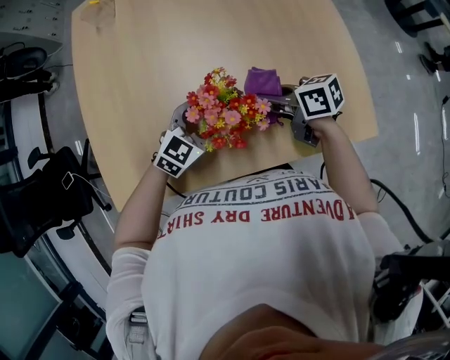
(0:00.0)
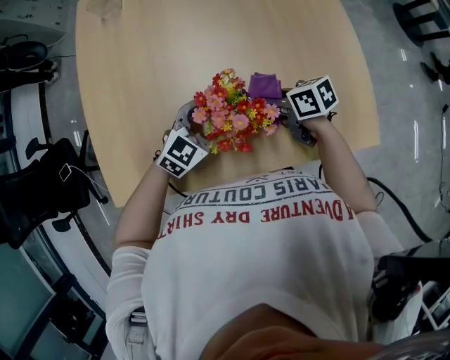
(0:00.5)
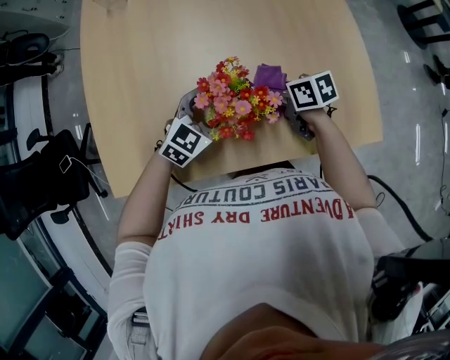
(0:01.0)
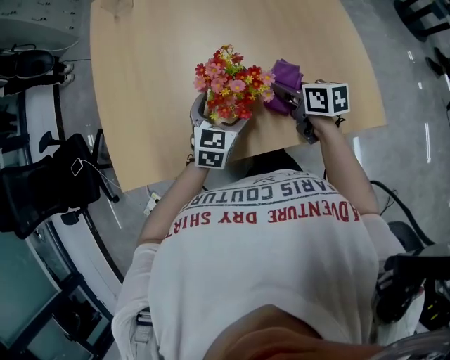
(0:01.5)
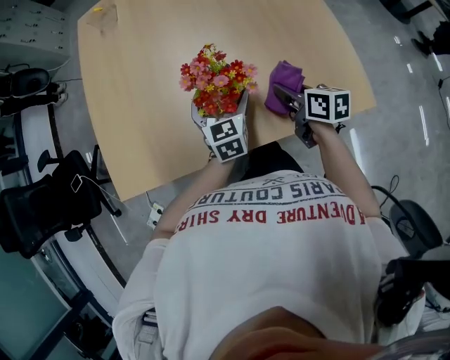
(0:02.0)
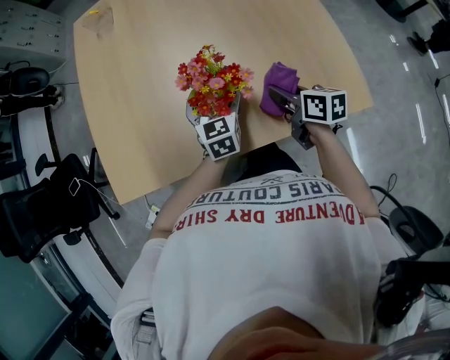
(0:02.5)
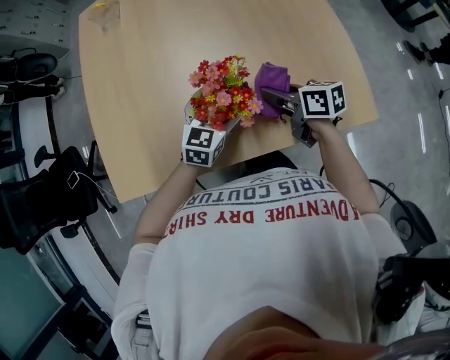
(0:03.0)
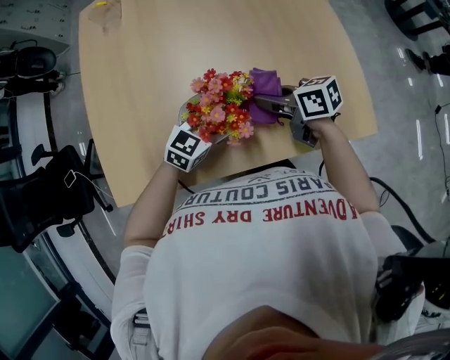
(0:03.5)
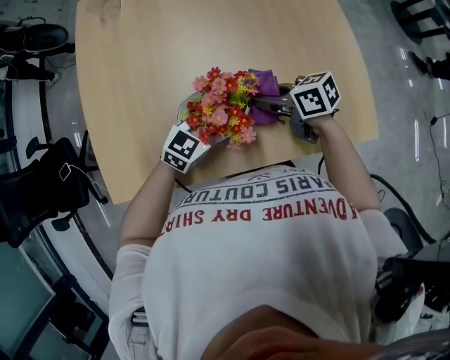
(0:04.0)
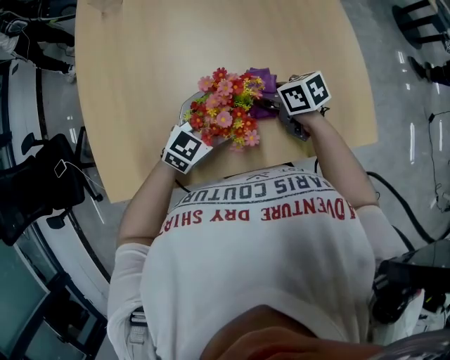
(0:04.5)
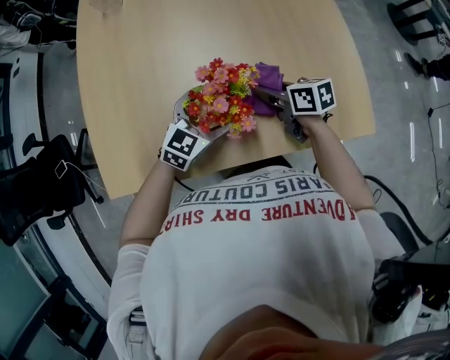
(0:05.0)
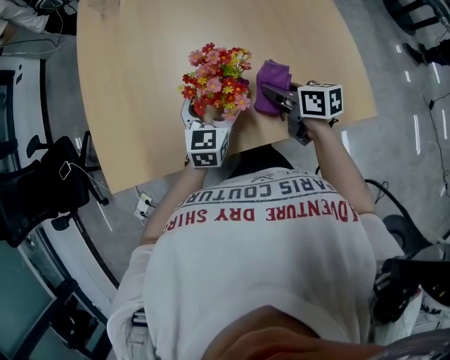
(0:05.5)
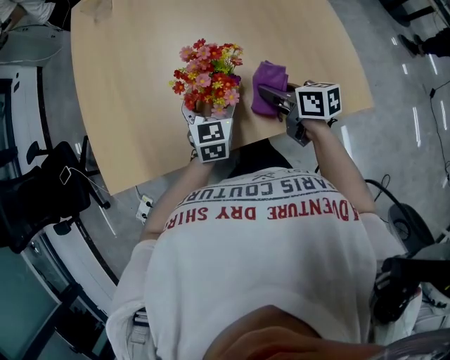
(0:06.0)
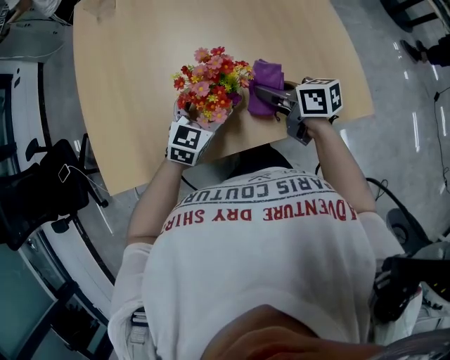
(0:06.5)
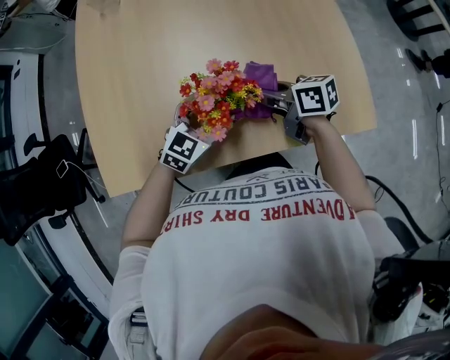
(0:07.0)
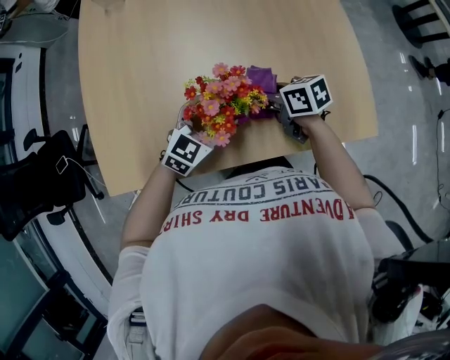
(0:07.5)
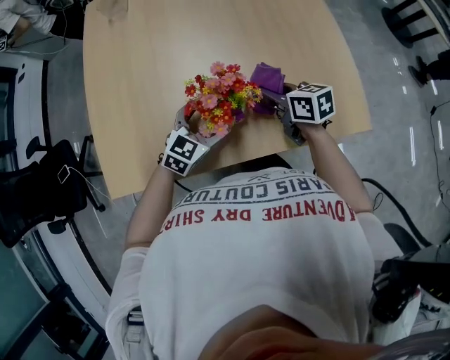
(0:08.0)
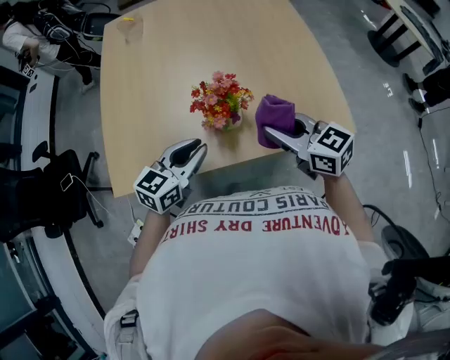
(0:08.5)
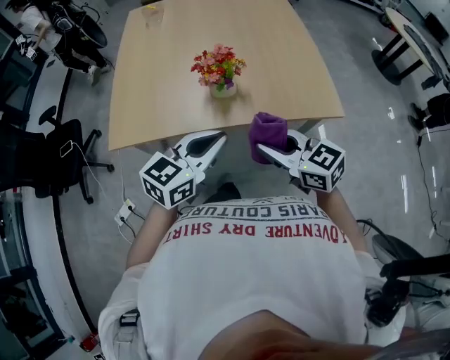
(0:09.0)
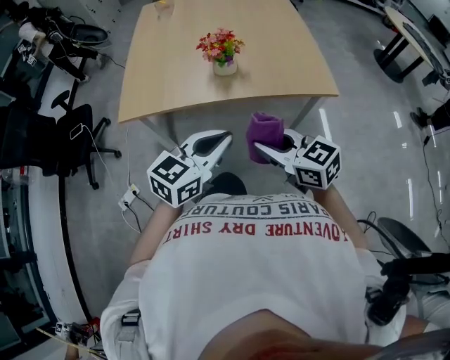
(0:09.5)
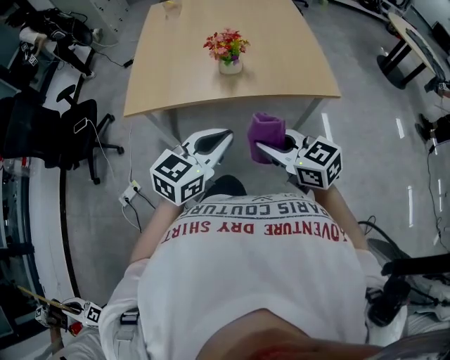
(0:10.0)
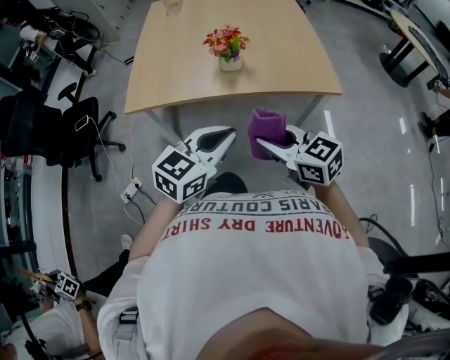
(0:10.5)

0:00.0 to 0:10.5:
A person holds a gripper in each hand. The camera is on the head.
0:00.0 to 0:02.0: The right gripper ends up some 10 cm from where it was, and rotates some 30 degrees. The left gripper turns by approximately 50 degrees.
0:02.0 to 0:04.0: The left gripper swivels some 50 degrees, while the right gripper changes place by some 10 cm, and changes its angle by about 30 degrees.
0:04.0 to 0:06.5: The right gripper moves about 5 cm.
0:06.5 to 0:08.5: The left gripper goes some 20 cm upward, backward and to the left, and closes up. Meanwhile the right gripper is displaced upward and backward by approximately 20 cm, and changes its angle by about 40 degrees.
0:08.5 to 0:10.5: Both grippers travel together backward, about 35 cm.

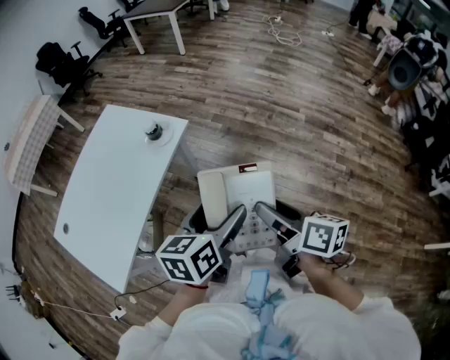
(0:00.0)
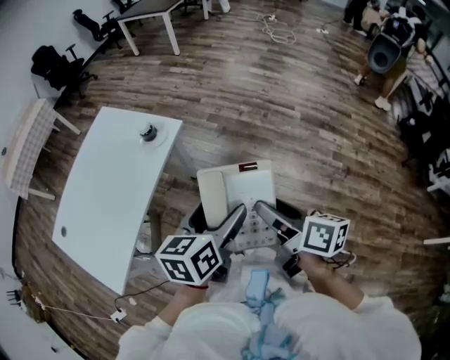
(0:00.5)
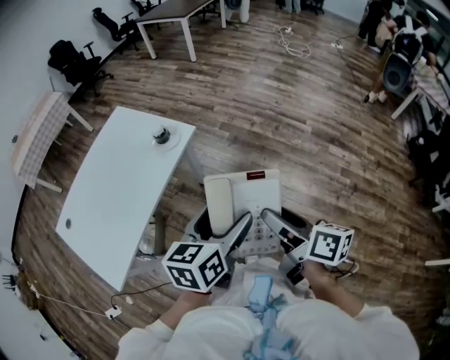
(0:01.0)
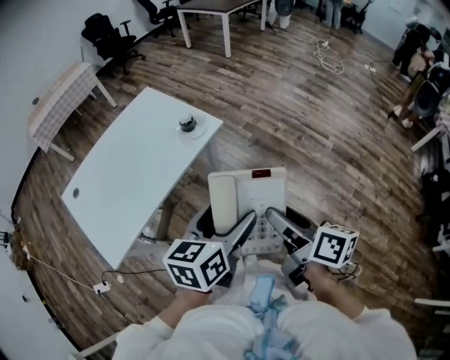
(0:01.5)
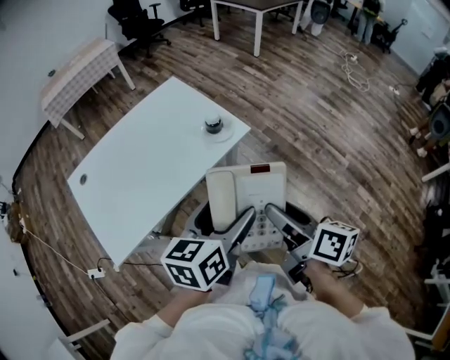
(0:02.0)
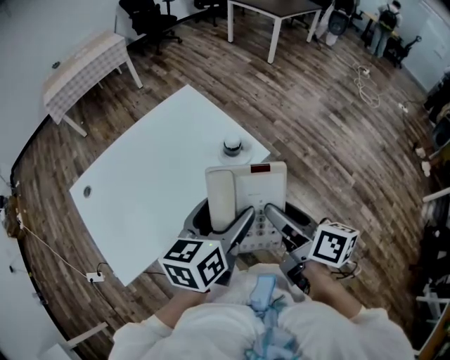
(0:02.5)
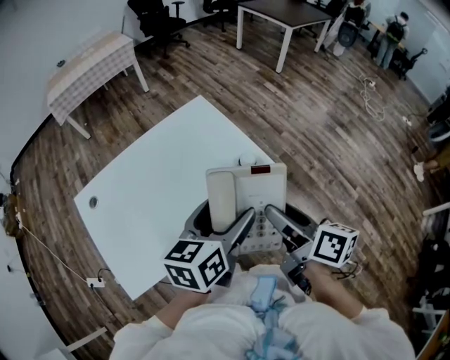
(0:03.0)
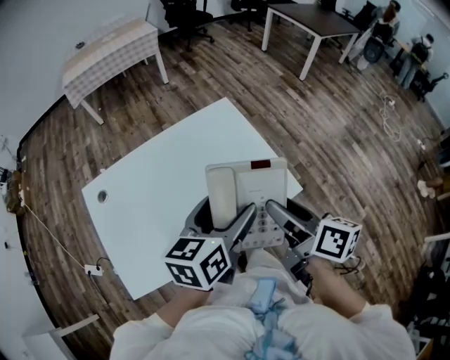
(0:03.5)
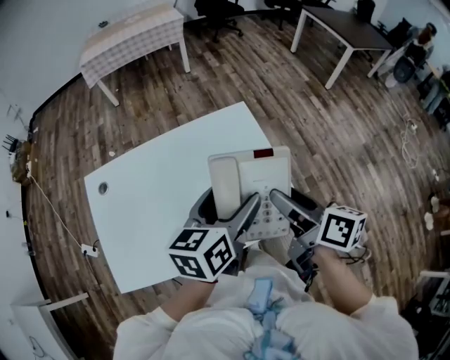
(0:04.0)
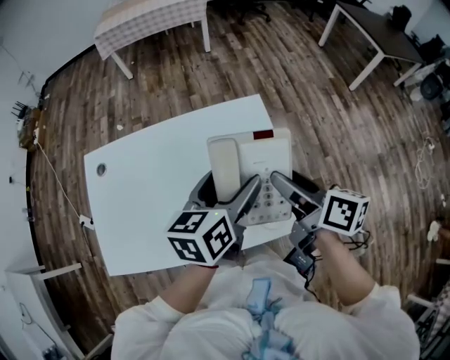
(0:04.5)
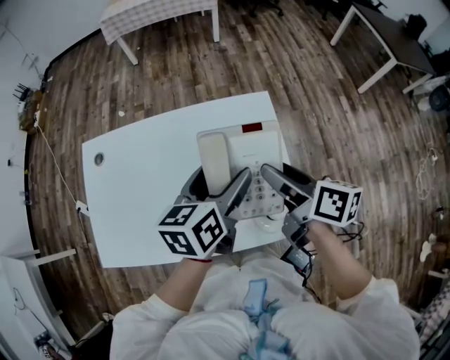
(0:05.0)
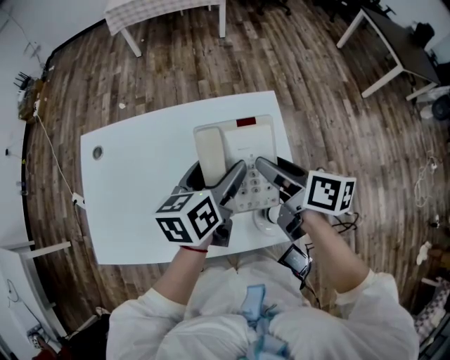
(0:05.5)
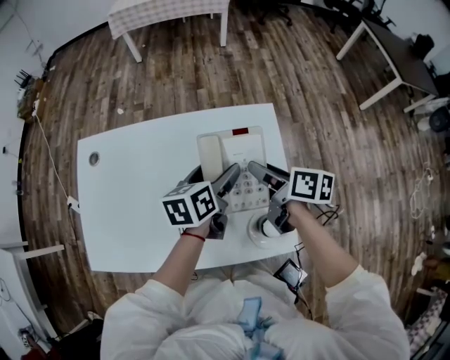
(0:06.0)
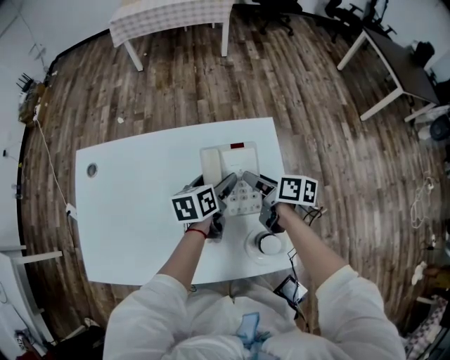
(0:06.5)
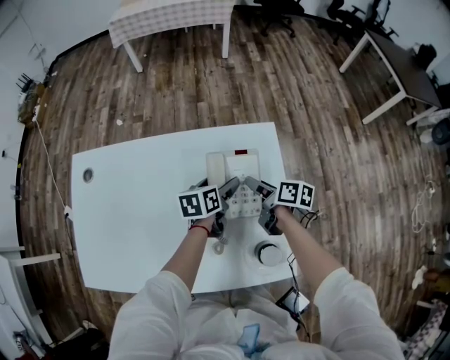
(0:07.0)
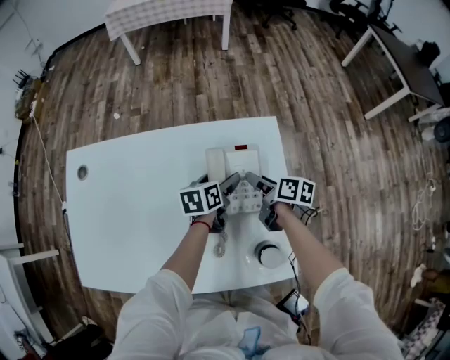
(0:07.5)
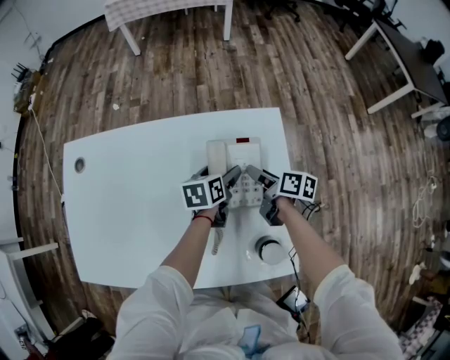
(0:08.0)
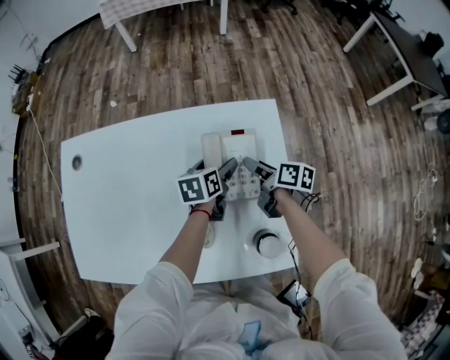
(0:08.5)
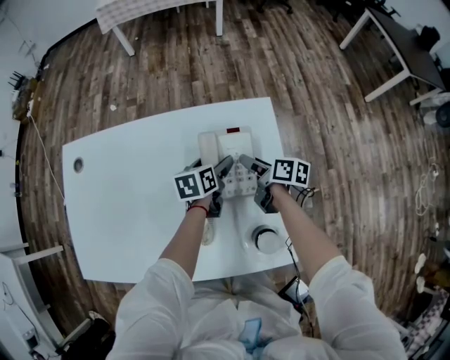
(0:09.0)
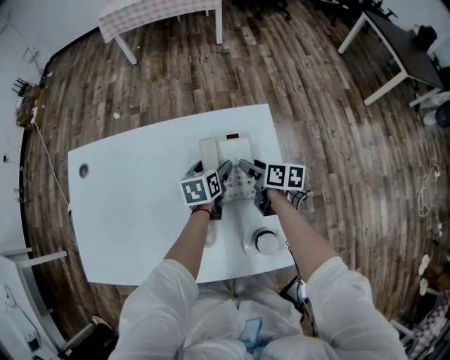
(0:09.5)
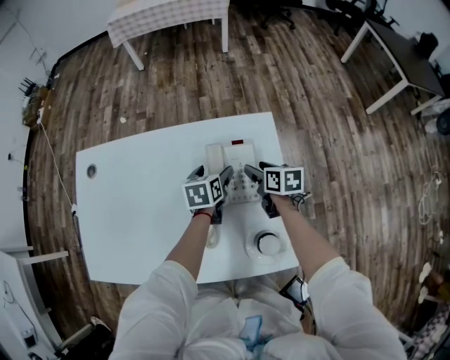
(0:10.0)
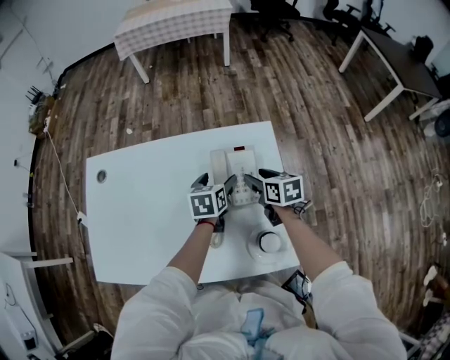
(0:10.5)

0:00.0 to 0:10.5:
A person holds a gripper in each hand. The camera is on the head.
0:00.0 to 0:02.0: The grippers both shift to the left and forward by approximately 15 cm. The left gripper rotates about 20 degrees. Meanwhile the right gripper swivels approximately 20 degrees.
0:02.0 to 0:04.0: The grippers both shift forward by some 40 cm. The right gripper rotates roughly 20 degrees, while the left gripper swivels roughly 20 degrees.
0:04.0 to 0:06.5: The two grippers go approximately 30 cm downward and forward. The left gripper rotates some 30 degrees. Meanwhile the right gripper swivels approximately 20 degrees.
0:06.5 to 0:08.5: The grippers both shift downward by some 10 cm.
0:08.5 to 0:10.5: The two grippers go about 5 cm upward. The right gripper rotates about 30 degrees.

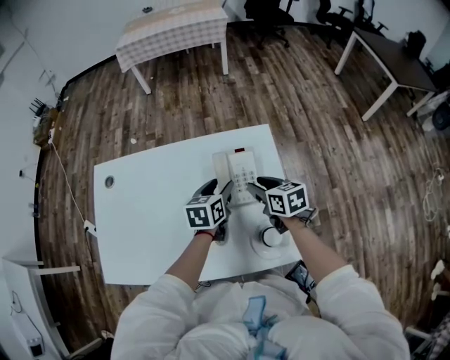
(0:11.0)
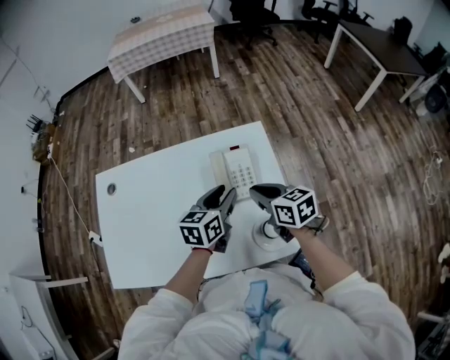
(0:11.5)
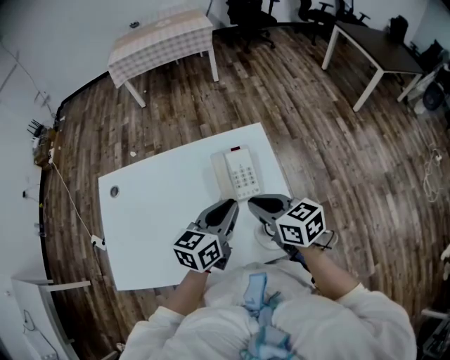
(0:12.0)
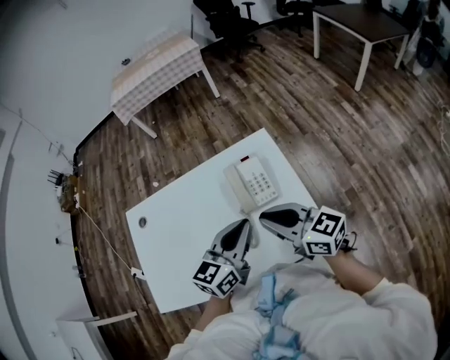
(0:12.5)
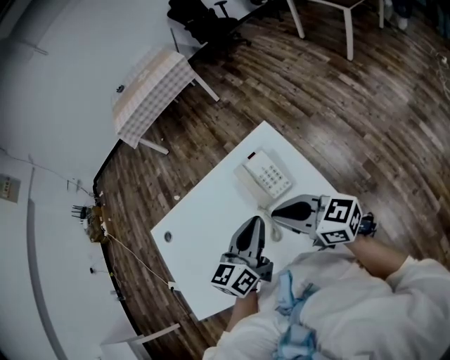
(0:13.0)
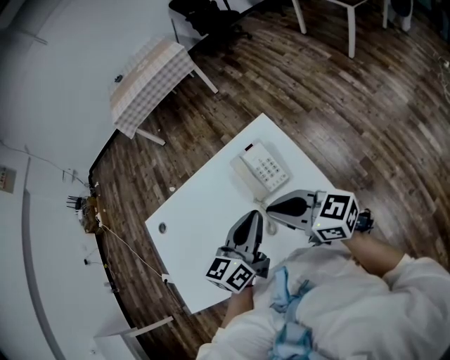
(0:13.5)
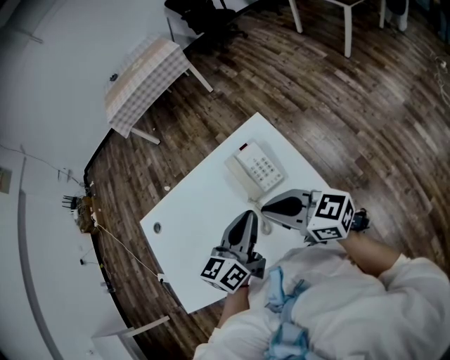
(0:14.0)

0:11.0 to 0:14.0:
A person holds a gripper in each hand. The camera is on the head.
0:11.0 to 0:12.5: Both grippers travel together upward and backward, approximately 25 cm. The right gripper tips its fingers upward by some 30 degrees, and closes its fingers. Meanwhile the left gripper swivels approximately 30 degrees, and closes up.
0:12.5 to 0:14.0: There are only small adjustments of the grippers.

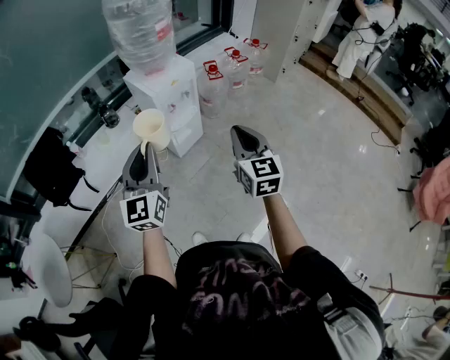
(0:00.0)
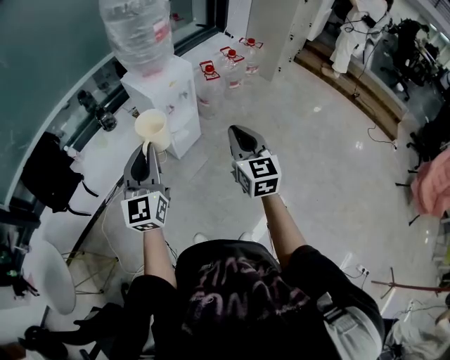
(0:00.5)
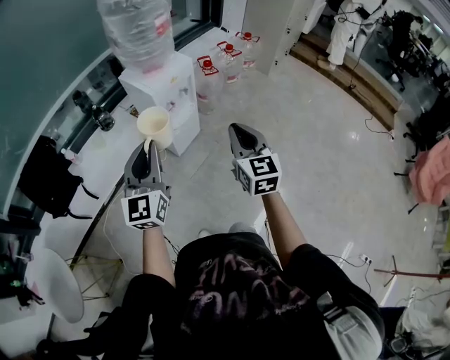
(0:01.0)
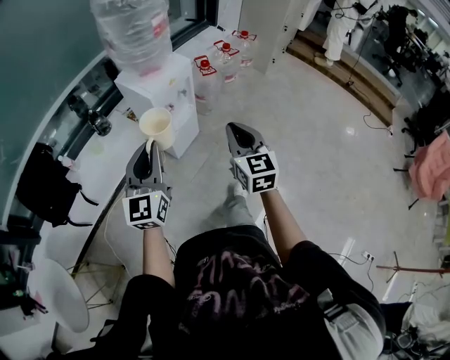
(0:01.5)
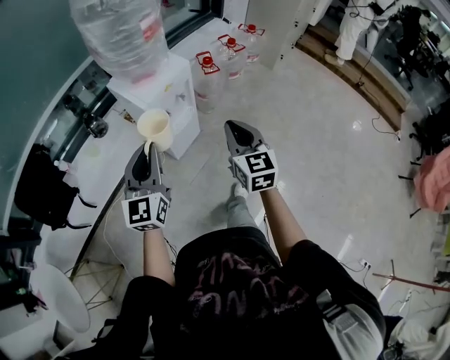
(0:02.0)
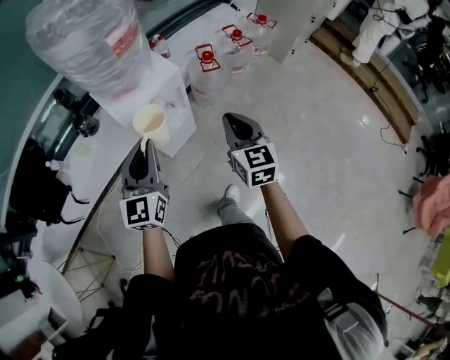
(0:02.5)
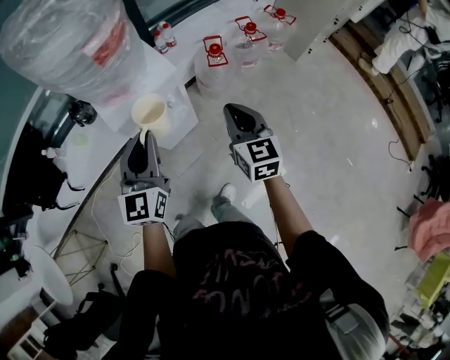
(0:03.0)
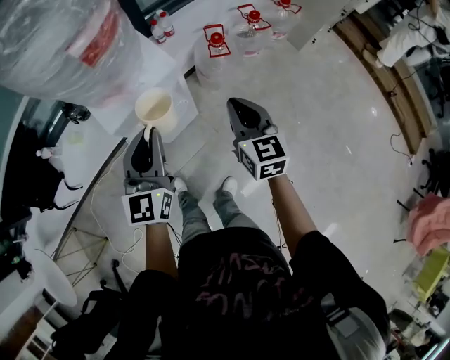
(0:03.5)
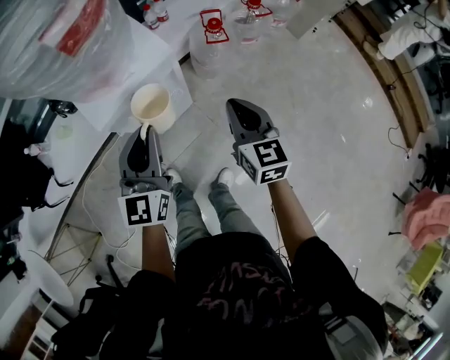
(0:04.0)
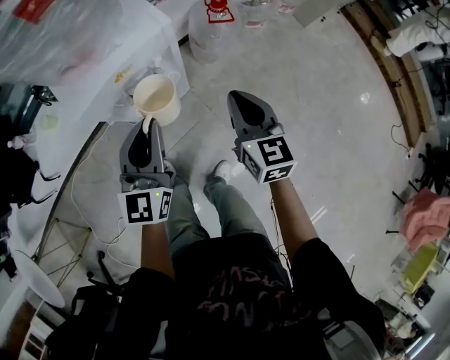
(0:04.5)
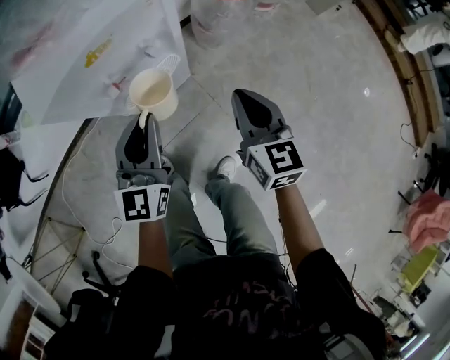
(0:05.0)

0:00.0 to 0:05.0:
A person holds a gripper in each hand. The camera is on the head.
0:00.0 to 0:02.5: The grippers both shift forward by roughly 30 cm.
0:02.5 to 0:05.0: The grippers both shift downward by some 30 cm.
